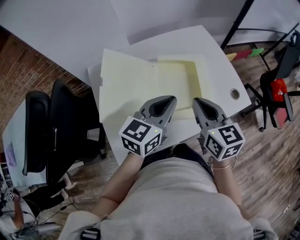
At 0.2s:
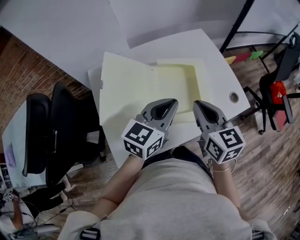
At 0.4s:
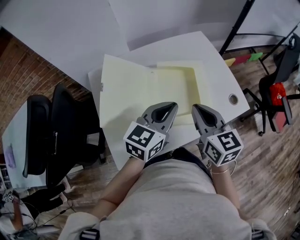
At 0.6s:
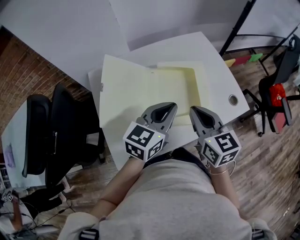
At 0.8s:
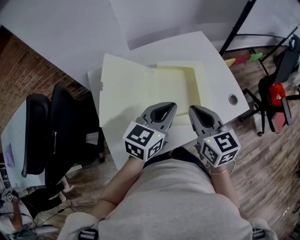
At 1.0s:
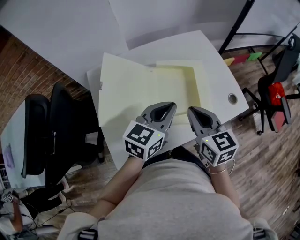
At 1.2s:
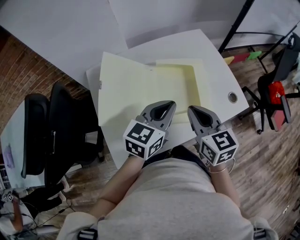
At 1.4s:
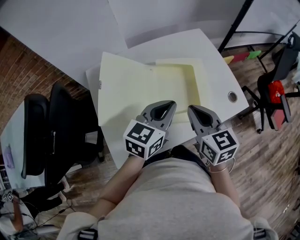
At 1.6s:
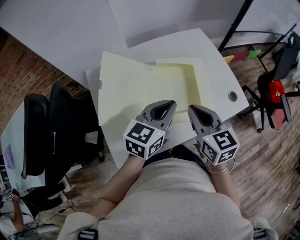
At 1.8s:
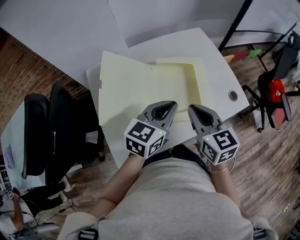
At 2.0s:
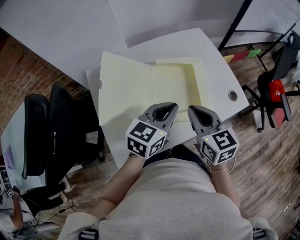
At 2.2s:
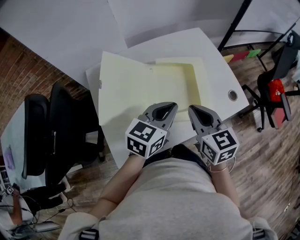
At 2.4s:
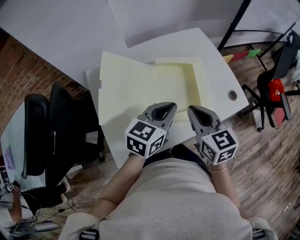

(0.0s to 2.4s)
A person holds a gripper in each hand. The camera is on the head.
0.0s - 2.4s: The grippers stay close to where they were, moving slightly.

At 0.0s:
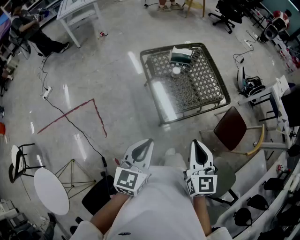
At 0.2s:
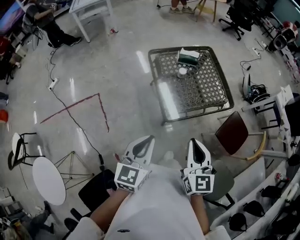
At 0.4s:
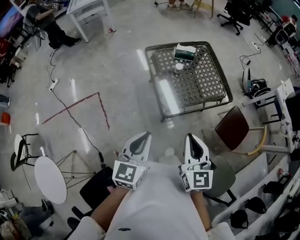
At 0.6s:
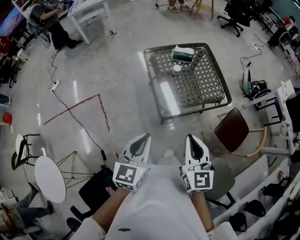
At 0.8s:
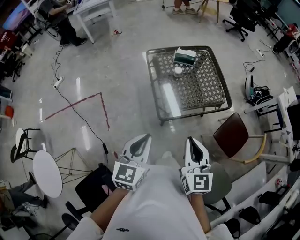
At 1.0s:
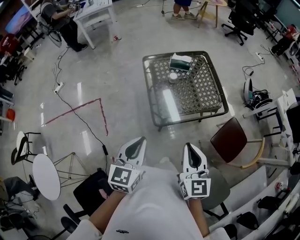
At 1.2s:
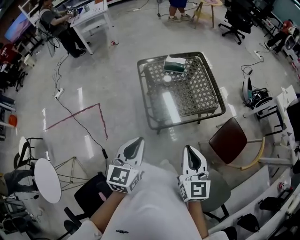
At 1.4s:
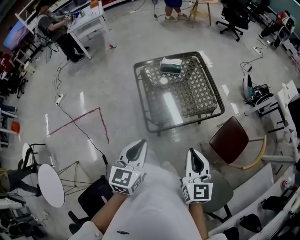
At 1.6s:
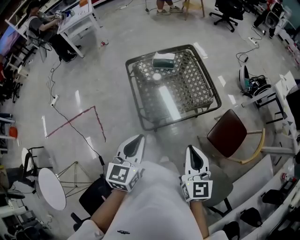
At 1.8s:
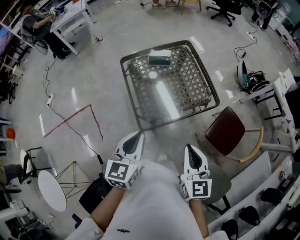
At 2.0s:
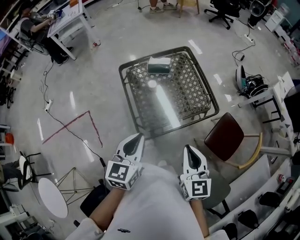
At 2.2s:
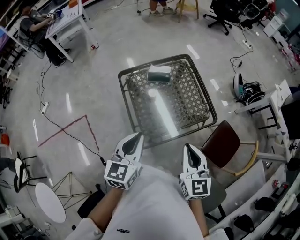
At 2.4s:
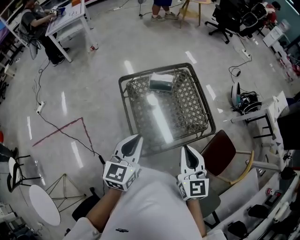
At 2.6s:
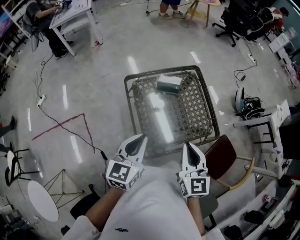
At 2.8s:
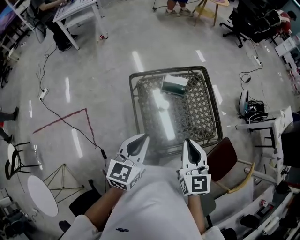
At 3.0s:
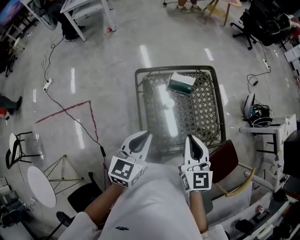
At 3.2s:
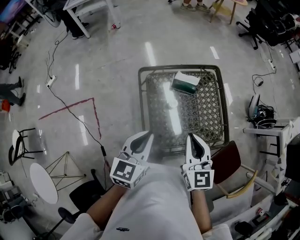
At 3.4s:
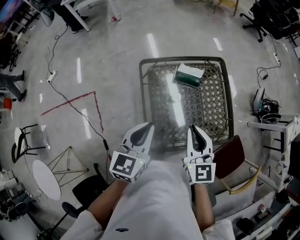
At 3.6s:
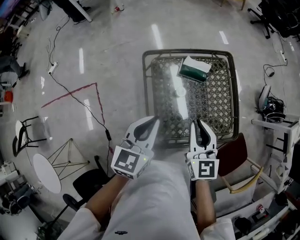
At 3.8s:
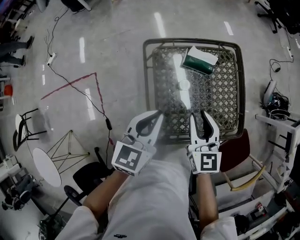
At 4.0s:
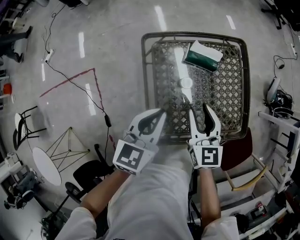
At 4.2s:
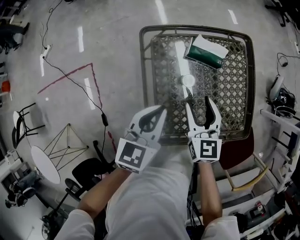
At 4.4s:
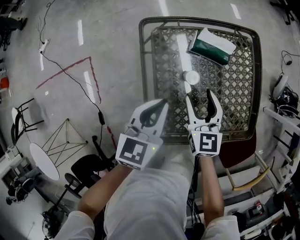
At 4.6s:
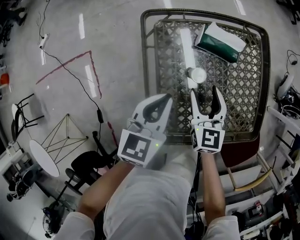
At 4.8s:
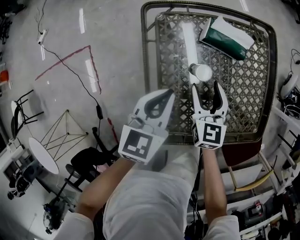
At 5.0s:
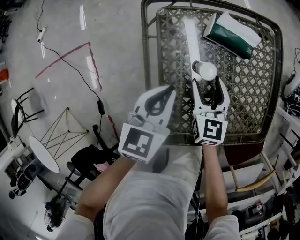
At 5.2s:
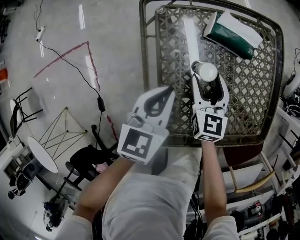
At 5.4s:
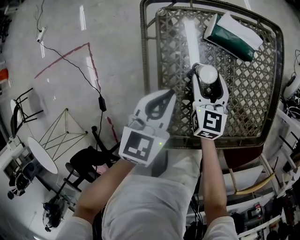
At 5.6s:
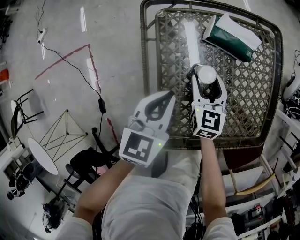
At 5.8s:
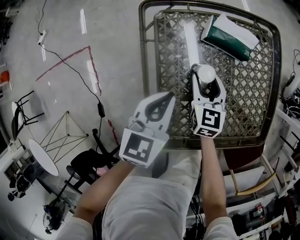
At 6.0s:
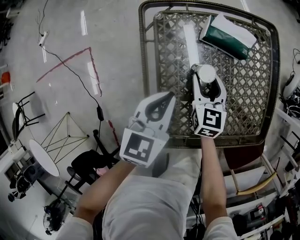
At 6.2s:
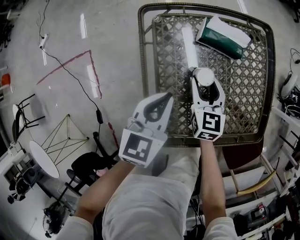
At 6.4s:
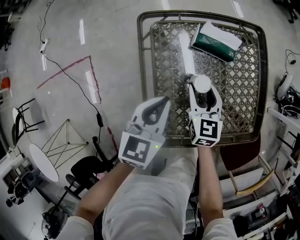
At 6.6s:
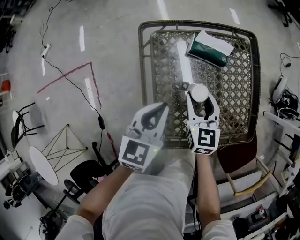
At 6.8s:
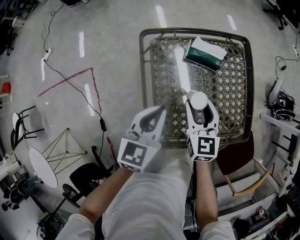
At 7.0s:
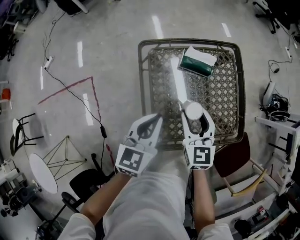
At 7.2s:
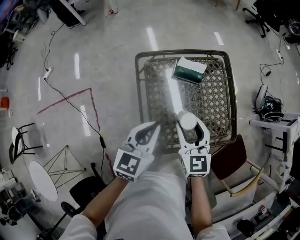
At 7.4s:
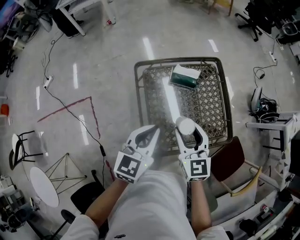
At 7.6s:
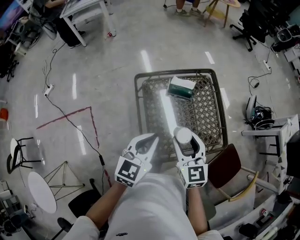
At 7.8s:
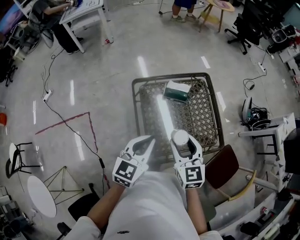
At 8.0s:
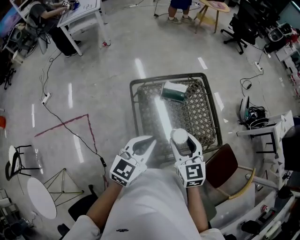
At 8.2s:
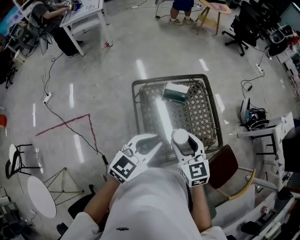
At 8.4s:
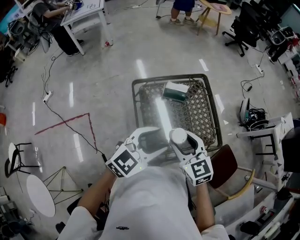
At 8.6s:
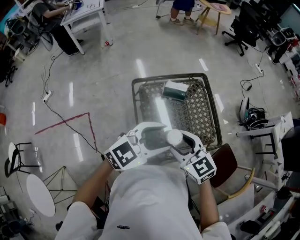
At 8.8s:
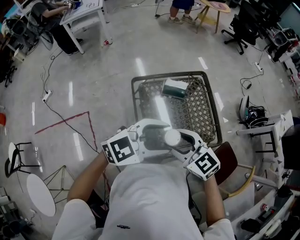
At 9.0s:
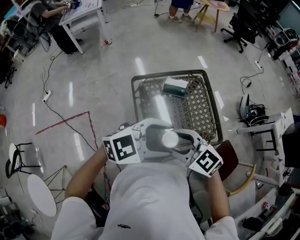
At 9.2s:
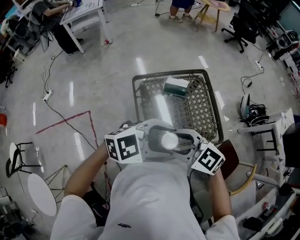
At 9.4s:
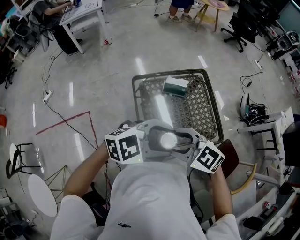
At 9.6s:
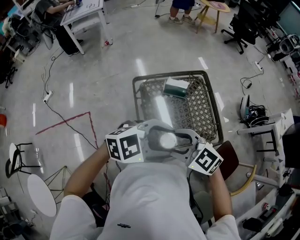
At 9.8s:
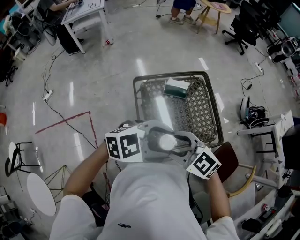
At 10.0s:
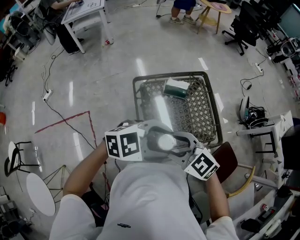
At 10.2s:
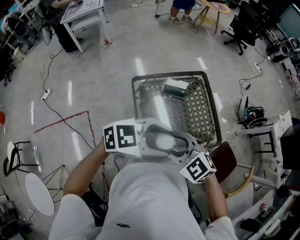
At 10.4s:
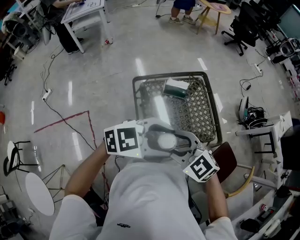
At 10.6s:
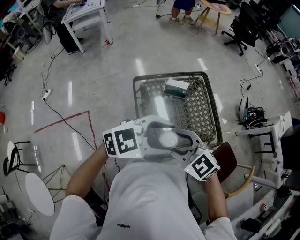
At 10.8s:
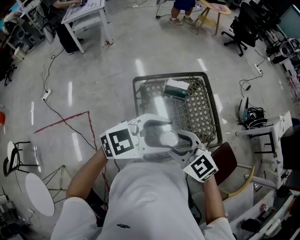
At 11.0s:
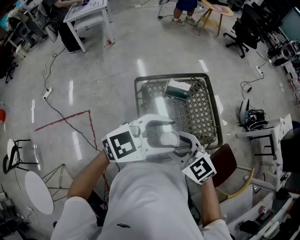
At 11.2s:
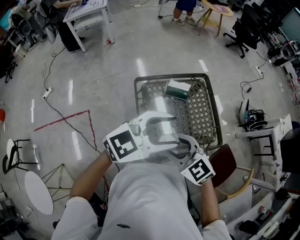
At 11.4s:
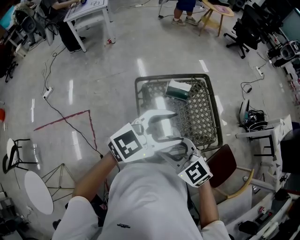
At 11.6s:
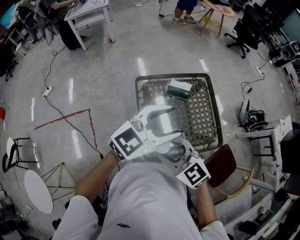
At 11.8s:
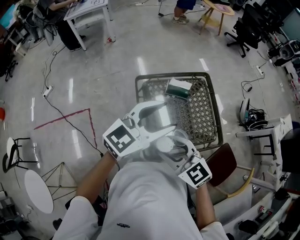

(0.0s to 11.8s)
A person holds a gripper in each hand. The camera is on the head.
0.0s - 1.4s: Both grippers travel together to the right, approximately 15 cm.
1.4s - 3.0s: The two grippers go some 30 cm forward.
3.0s - 4.4s: Both grippers travel together downward and forward, roughly 25 cm. The right gripper opens its fingers.
4.4s - 6.0s: The right gripper is displaced downward by approximately 10 cm. The left gripper is displaced downward by approximately 10 cm.
6.0s - 7.4s: The right gripper shifts roughly 30 cm upward and backward. The left gripper heads upward, covering about 25 cm.
7.4s - 8.8s: The two grippers go approximately 10 cm upward. The right gripper turns by approximately 30 degrees. The left gripper rotates about 50 degrees, and opens up.
8.8s - 10.4s: There are only small adjustments of the grippers.
10.4s - 11.8s: The left gripper shifts by some 10 cm, and swivels roughly 40 degrees.

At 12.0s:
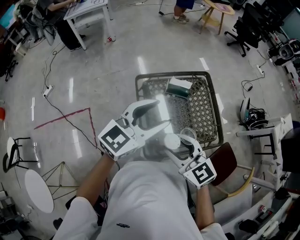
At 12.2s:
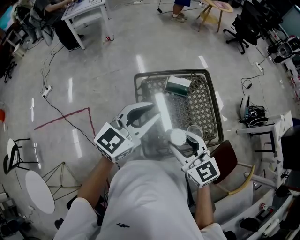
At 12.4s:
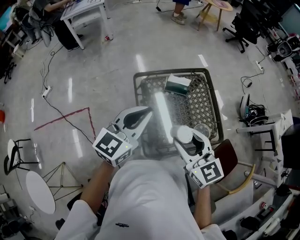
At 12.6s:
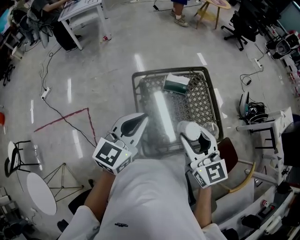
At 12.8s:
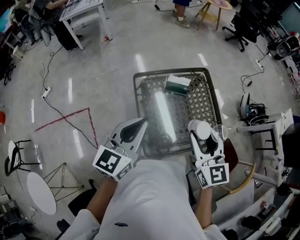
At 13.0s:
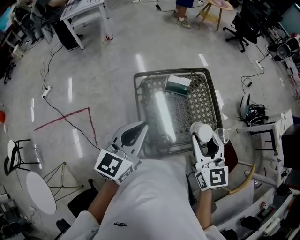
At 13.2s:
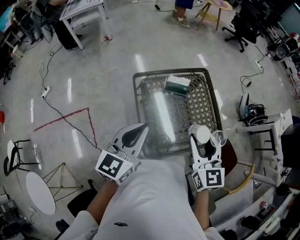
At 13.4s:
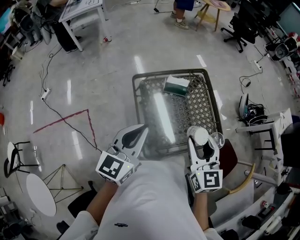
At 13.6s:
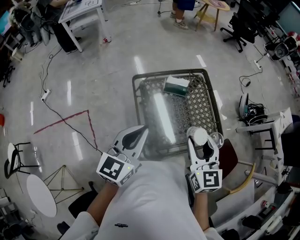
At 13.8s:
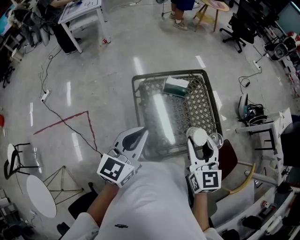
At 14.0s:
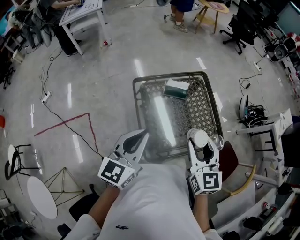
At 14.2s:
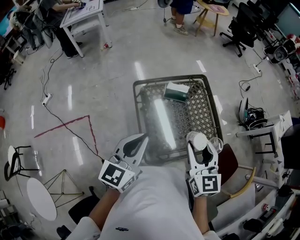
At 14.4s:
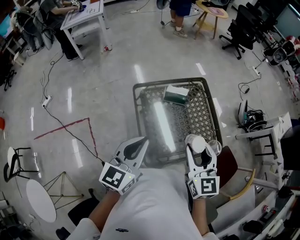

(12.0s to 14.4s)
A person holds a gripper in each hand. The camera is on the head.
12.0s - 13.2s: The left gripper changes place by roughly 5 cm, changes its angle by about 20 degrees, and closes its fingers. The right gripper travels to the right by roughly 10 cm, and swivels roughly 30 degrees.
13.2s - 14.4s: Both grippers stay about where they are.

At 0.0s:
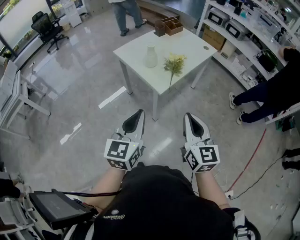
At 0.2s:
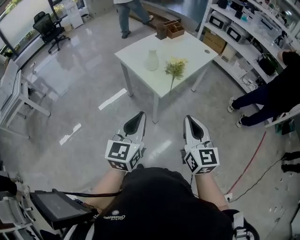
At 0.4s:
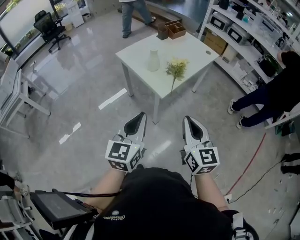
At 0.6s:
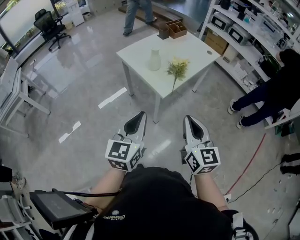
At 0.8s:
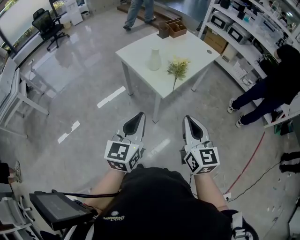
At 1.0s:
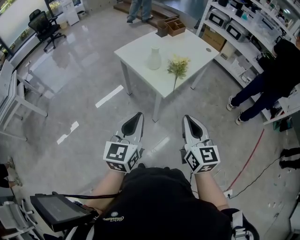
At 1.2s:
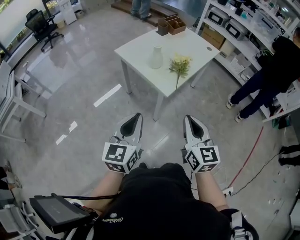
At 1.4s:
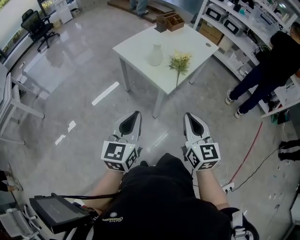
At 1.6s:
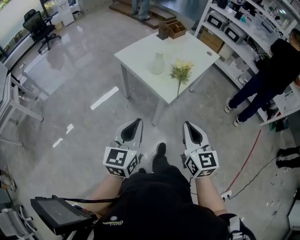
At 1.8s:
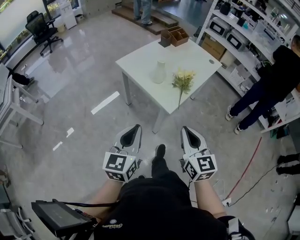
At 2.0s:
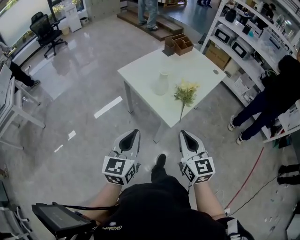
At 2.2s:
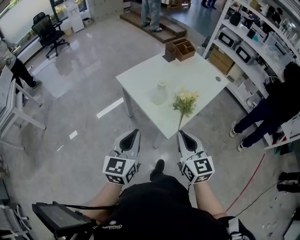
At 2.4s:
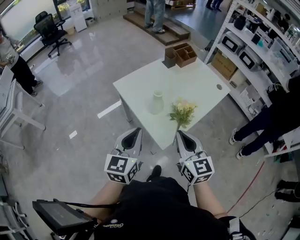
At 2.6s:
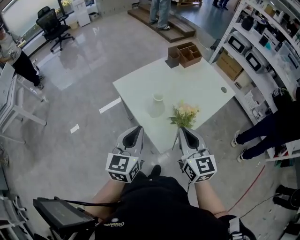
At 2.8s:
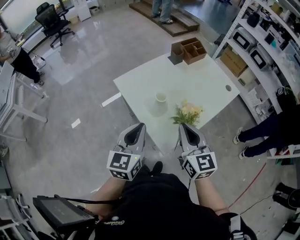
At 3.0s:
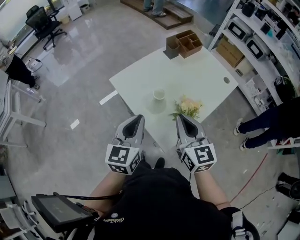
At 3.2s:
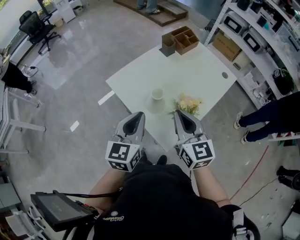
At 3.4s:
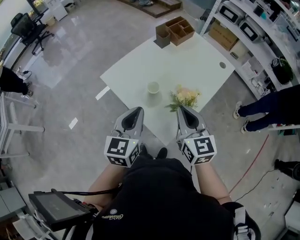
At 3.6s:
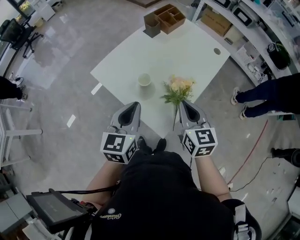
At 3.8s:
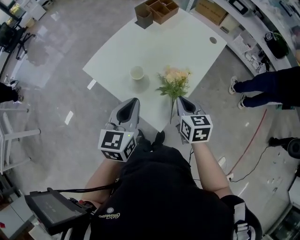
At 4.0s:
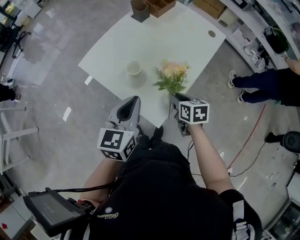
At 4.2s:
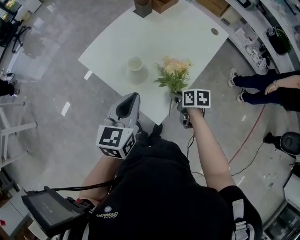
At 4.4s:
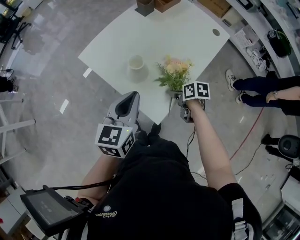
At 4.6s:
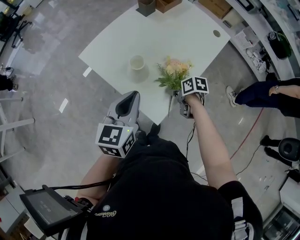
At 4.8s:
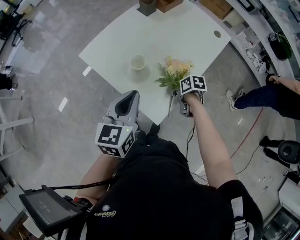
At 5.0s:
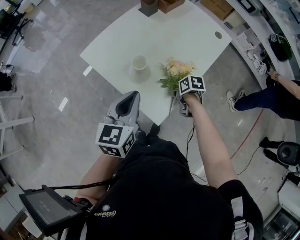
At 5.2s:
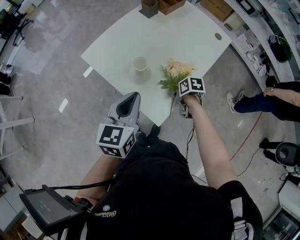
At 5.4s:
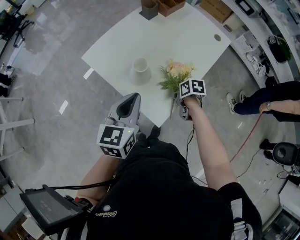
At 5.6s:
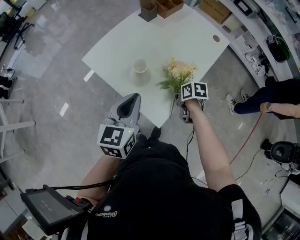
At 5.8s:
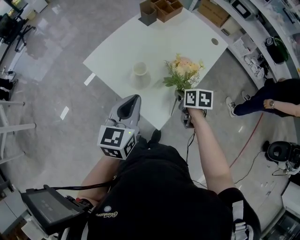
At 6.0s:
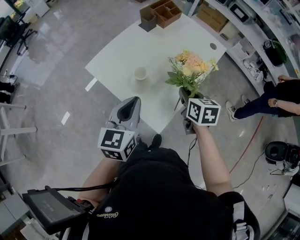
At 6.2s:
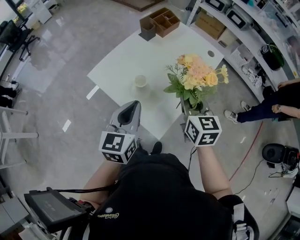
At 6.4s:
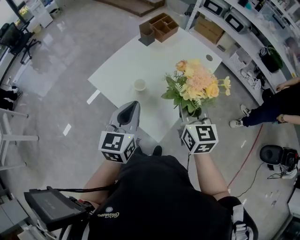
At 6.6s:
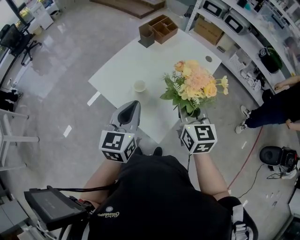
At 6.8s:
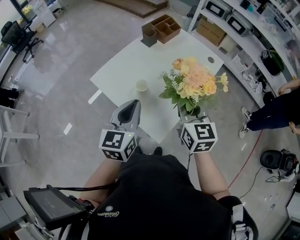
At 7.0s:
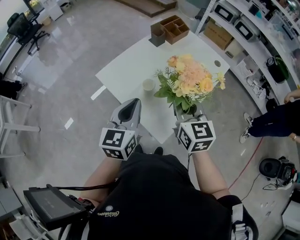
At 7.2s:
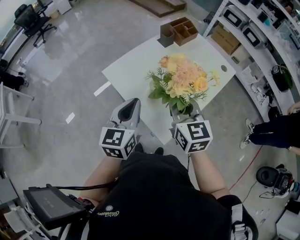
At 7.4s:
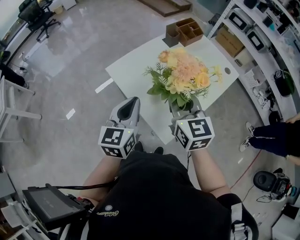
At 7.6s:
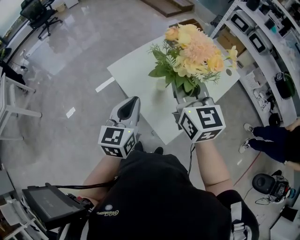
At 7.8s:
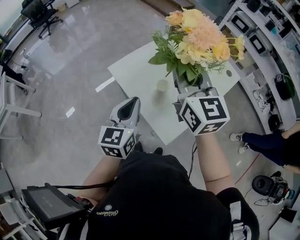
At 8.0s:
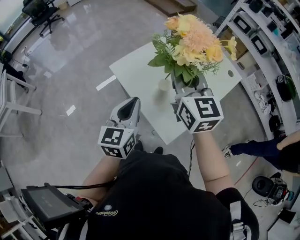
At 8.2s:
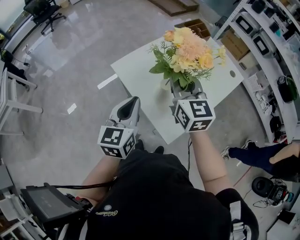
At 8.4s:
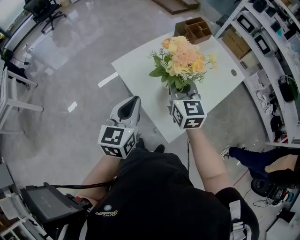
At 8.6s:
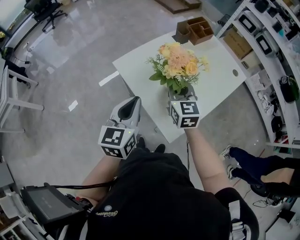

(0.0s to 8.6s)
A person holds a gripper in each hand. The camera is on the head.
0.0s - 1.4s: The two grippers go about 10 cm to the left.
1.4s - 2.8s: Both grippers travel together forward, approximately 35 cm.
2.8s - 4.4s: The left gripper travels downward and forward by some 10 cm. Meanwhile the right gripper is displaced downward by approximately 30 cm, points its fingers roughly 50 degrees further downward, and opens.
4.4s - 5.8s: The right gripper heads upward, covering some 5 cm, and closes.
5.8s - 7.2s: The right gripper heads upward and to the left, covering roughly 25 cm, and angles its fingers upward, by about 40 degrees. The left gripper moves to the left, roughly 5 cm.
7.2s - 8.6s: The right gripper travels forward and downward by some 10 cm.
